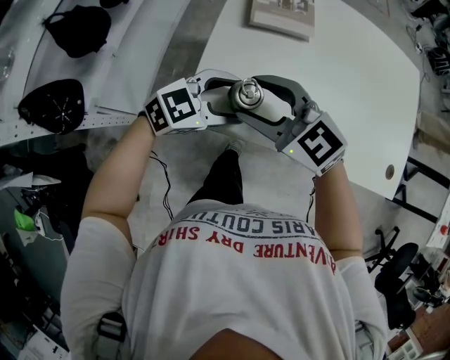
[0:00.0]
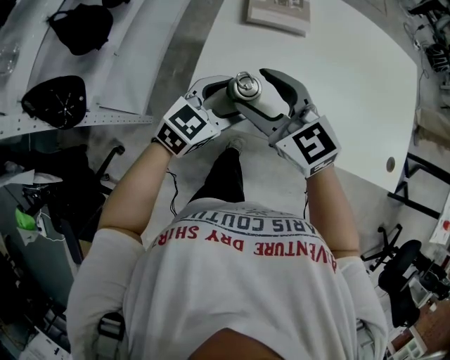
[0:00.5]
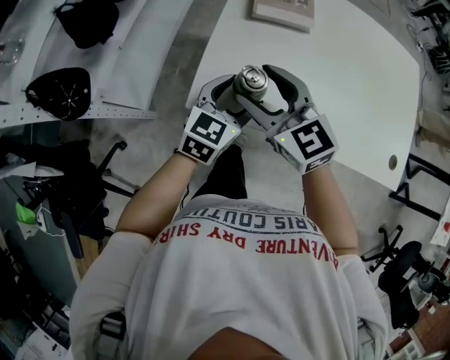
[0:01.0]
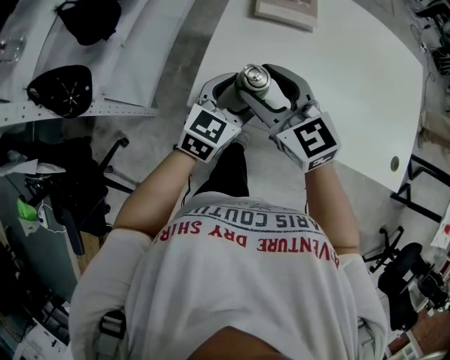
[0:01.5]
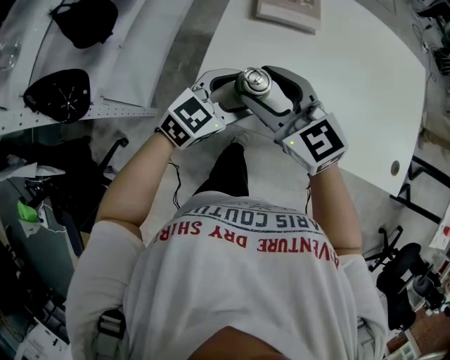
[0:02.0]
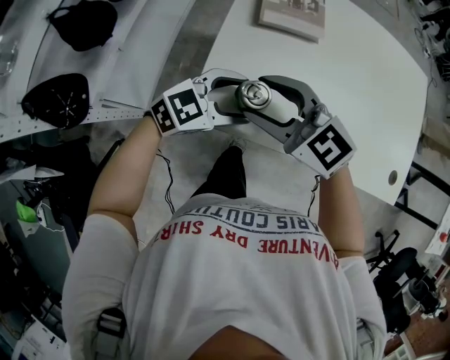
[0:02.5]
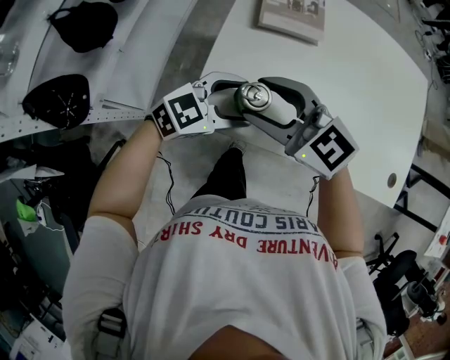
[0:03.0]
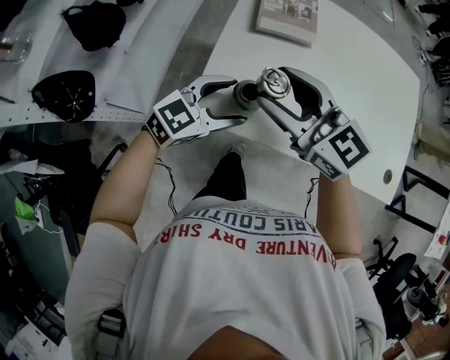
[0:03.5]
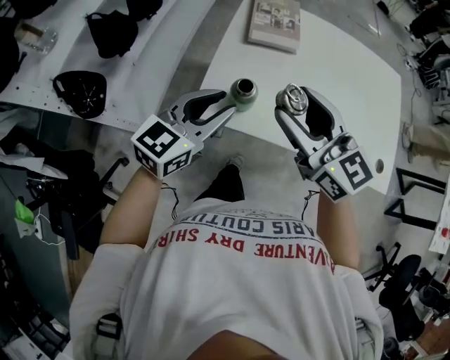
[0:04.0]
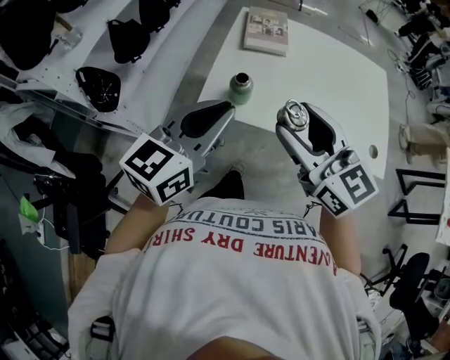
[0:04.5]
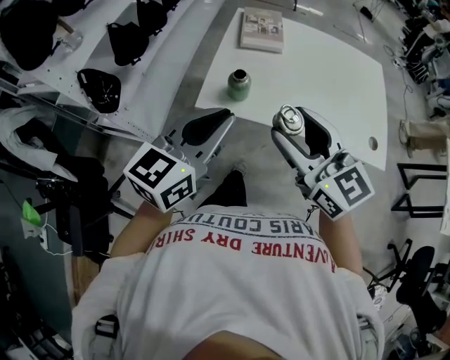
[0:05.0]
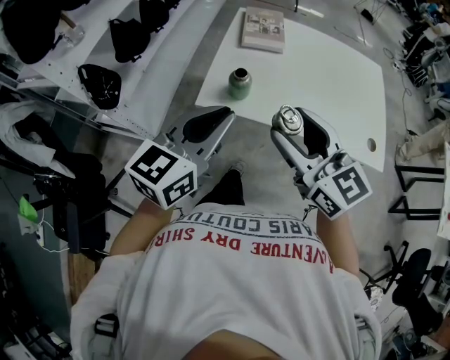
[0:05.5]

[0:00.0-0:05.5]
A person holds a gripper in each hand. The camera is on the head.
0:02.0 to 0:03.5: The right gripper shifts about 5 cm upward.
0:03.5 to 0:05.5: The right gripper shifts about 20 cm backward and upward. Meanwhile the left gripper shifts some 25 cm upward and backward, swivels roughly 30 degrees, and closes.

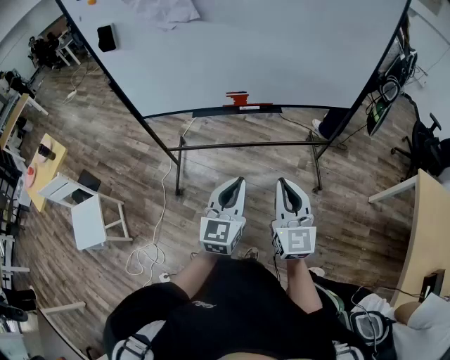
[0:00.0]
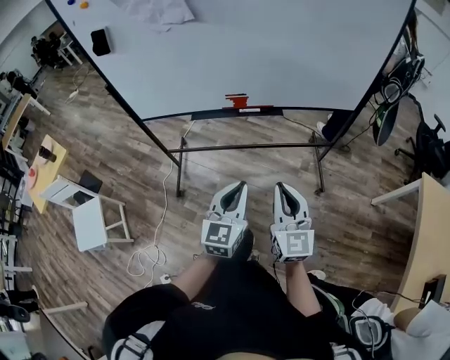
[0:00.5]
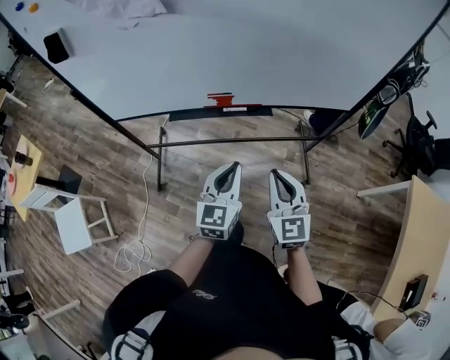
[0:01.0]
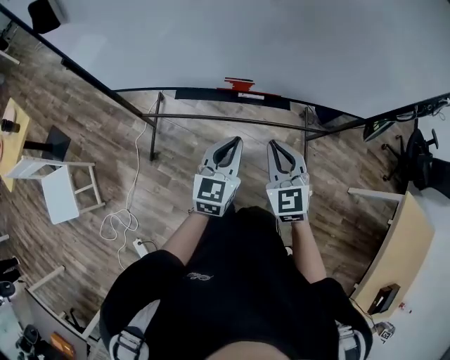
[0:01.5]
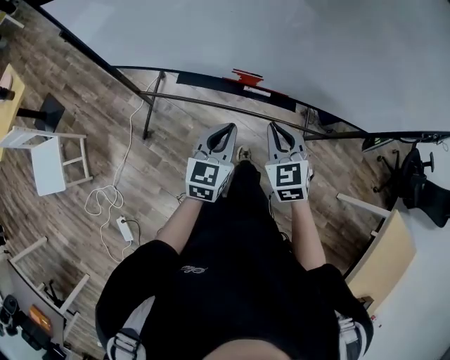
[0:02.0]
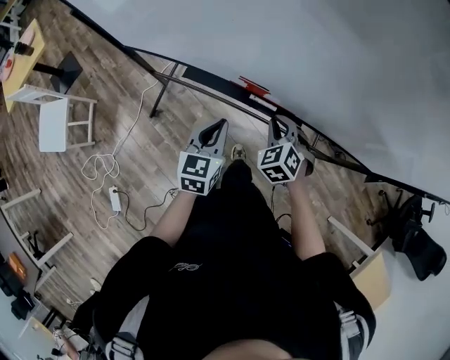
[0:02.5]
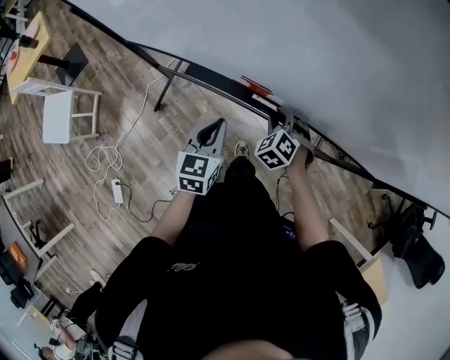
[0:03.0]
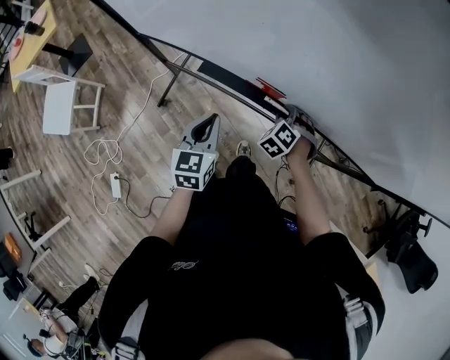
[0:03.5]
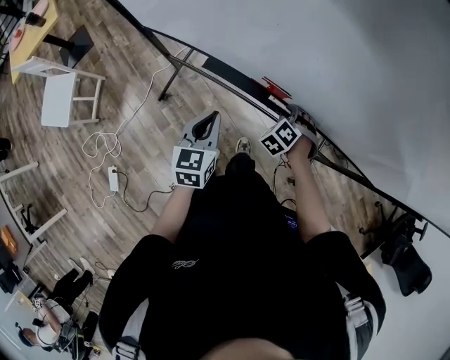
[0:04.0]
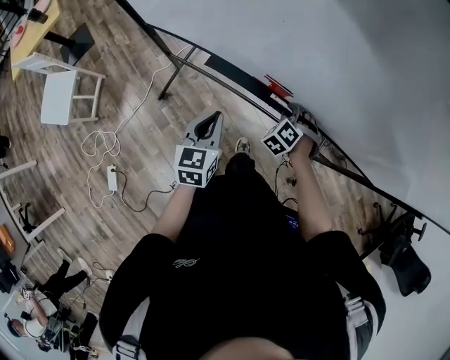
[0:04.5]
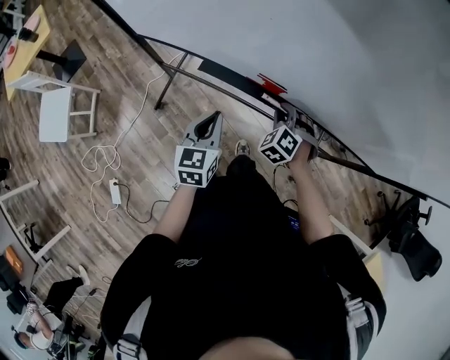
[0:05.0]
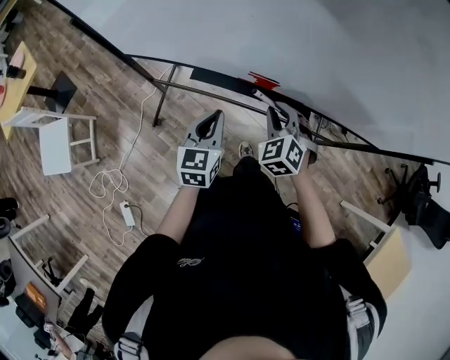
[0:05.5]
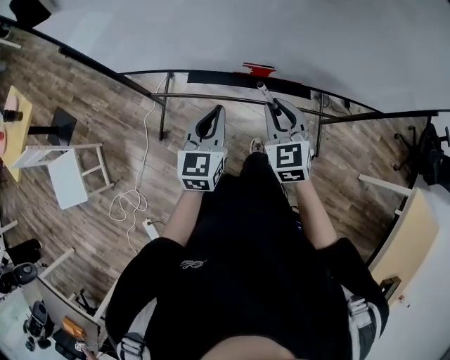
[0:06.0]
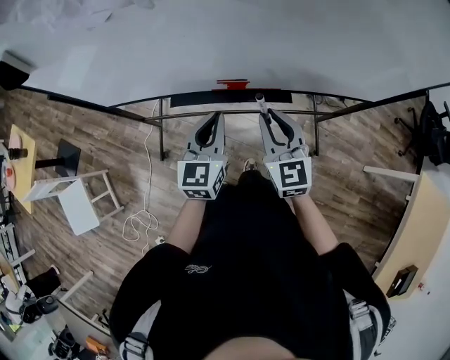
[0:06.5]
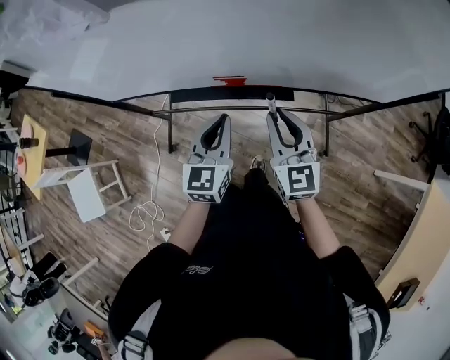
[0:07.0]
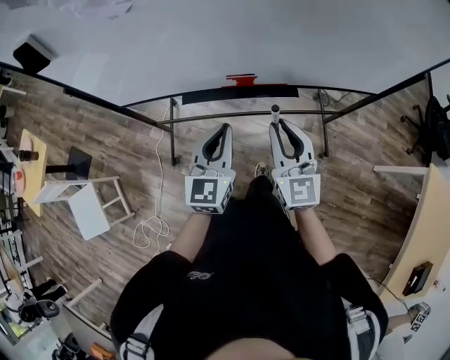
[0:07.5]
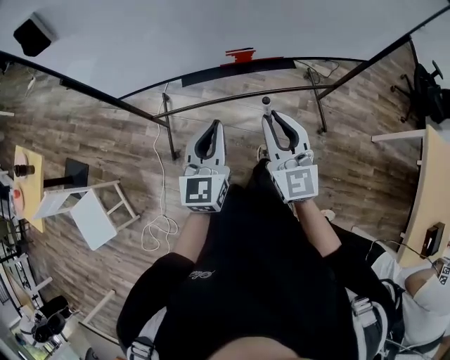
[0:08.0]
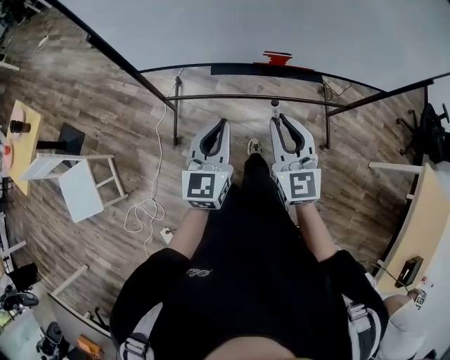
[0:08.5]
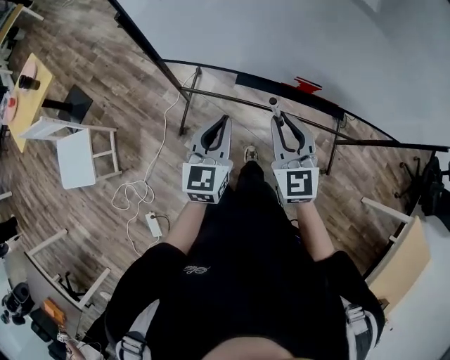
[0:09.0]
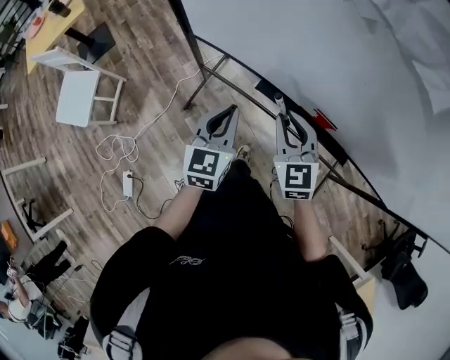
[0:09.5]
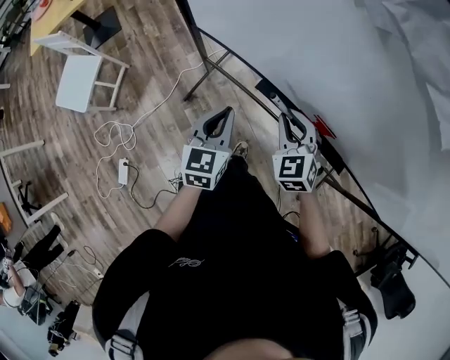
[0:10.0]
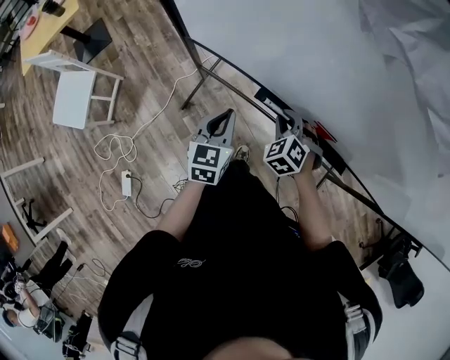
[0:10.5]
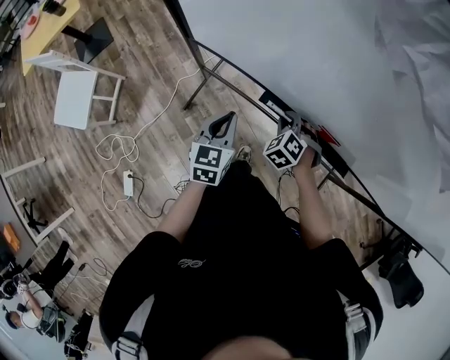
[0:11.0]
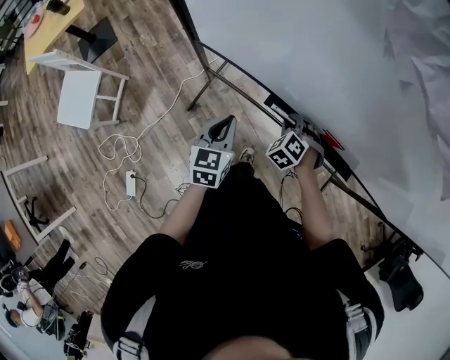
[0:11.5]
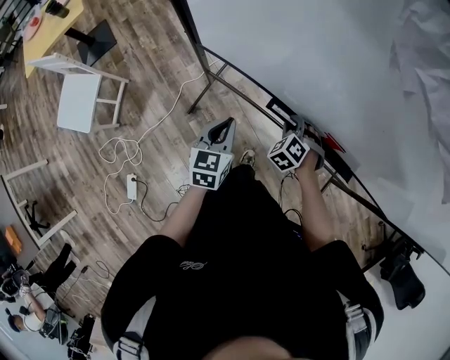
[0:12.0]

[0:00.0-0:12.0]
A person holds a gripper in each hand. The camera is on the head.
0:00.0 to 0:02.0: Both grippers move forward, roughly 30 cm. The right gripper points its fingers about 30 degrees further downward.
0:02.0 to 0:04.0: The left gripper heads to the left and downward, covering approximately 10 cm, and rotates roughly 30 degrees. The right gripper moves downward and forward, approximately 25 cm, and swivels some 50 degrees.
0:04.0 to 0:06.0: The left gripper moves upward, some 10 cm, and swivels some 20 degrees. The right gripper moves upward and backward, some 25 cm, and tilts its fingers approximately 30 degrees upward.
0:06.0 to 0:08.0: The two grippers go approximately 15 cm backward and upward. The right gripper turns by about 30 degrees.
0:08.0 to 0:10.0: The left gripper moves approximately 20 cm, and rotates some 40 degrees. The right gripper moves roughly 30 cm, and tilts its fingers some 30 degrees downward.
0:10.0 to 0:12.0: The left gripper shifts about 10 cm downward and to the left. The right gripper travels downward by roughly 15 cm, and changes its angle by approximately 30 degrees.

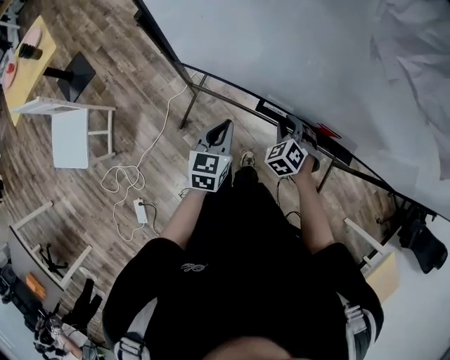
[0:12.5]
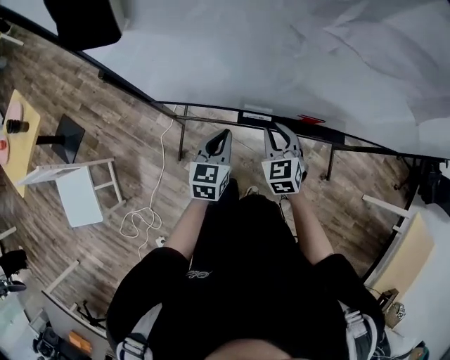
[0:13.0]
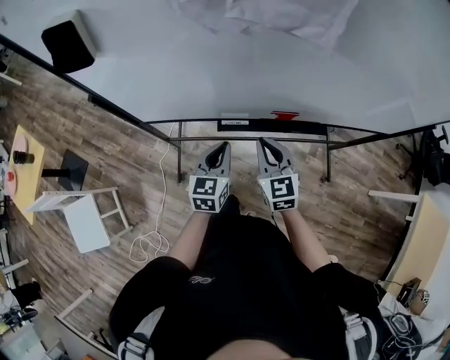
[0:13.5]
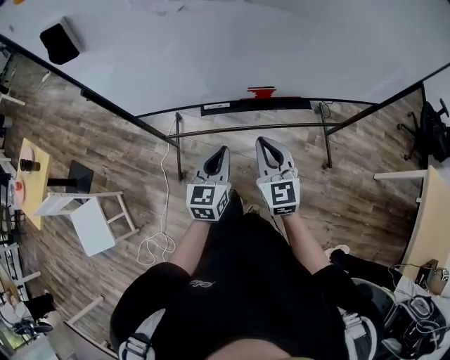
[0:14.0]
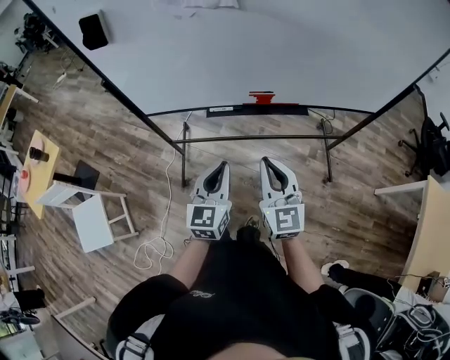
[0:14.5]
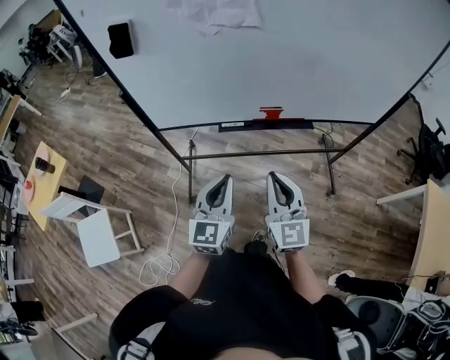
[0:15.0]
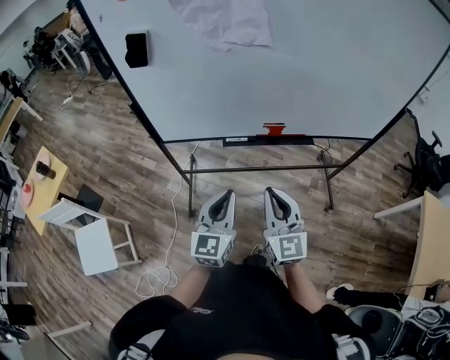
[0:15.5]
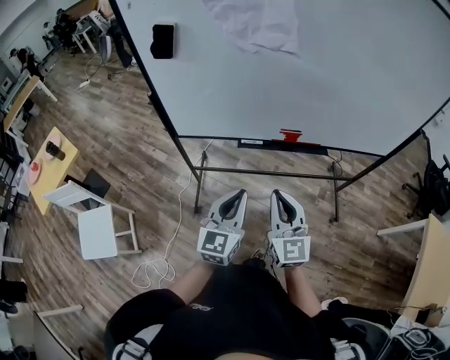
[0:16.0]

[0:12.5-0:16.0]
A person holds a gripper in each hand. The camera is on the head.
0:12.5 to 0:14.5: The right gripper moves backward, upward and to the right, roughly 40 cm, points its fingers about 50 degrees further upward, and closes up. The left gripper travels backward, to the right and upward by about 30 cm, and swivels approximately 30 degrees.
0:14.5 to 0:16.0: The right gripper heads to the left, covering approximately 10 cm. Meanwhile the left gripper moves to the left and upward, roughly 10 cm.

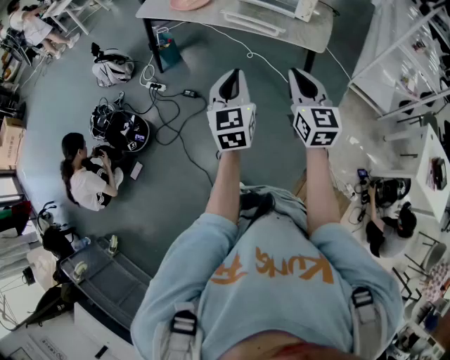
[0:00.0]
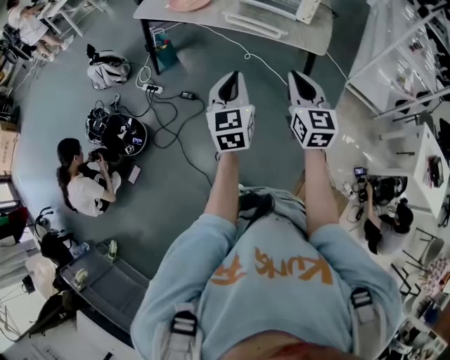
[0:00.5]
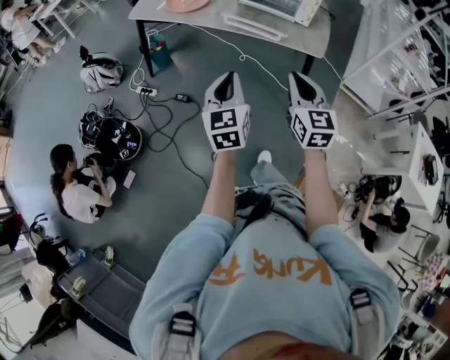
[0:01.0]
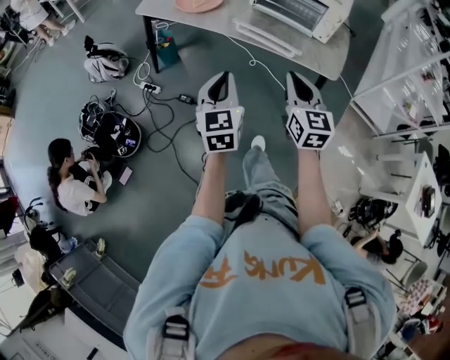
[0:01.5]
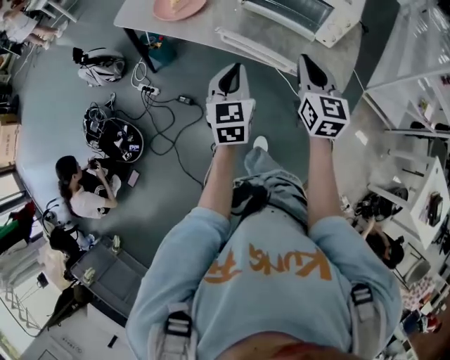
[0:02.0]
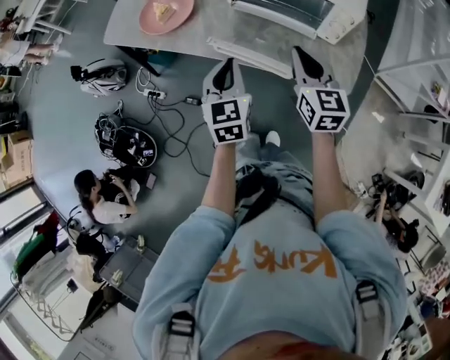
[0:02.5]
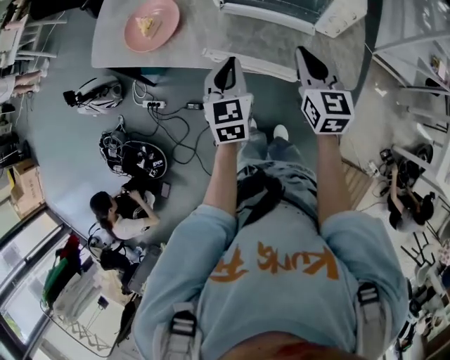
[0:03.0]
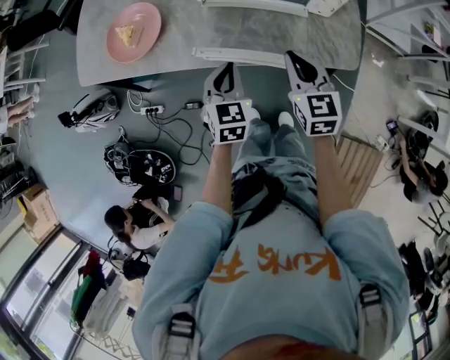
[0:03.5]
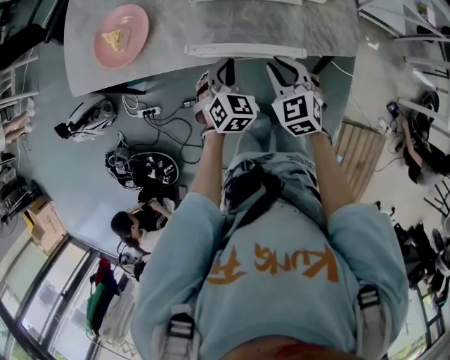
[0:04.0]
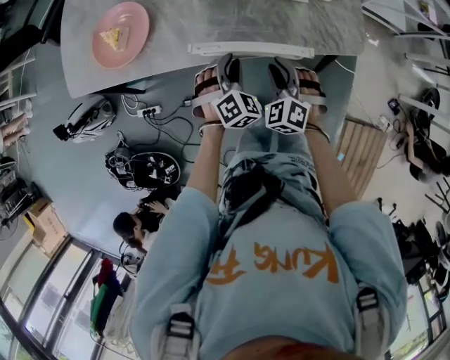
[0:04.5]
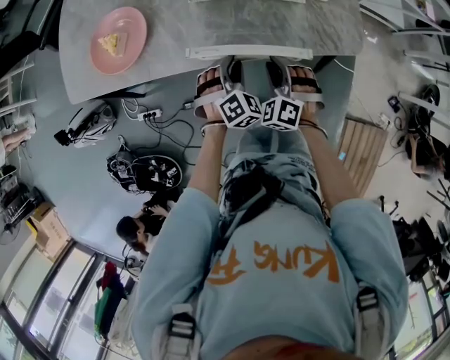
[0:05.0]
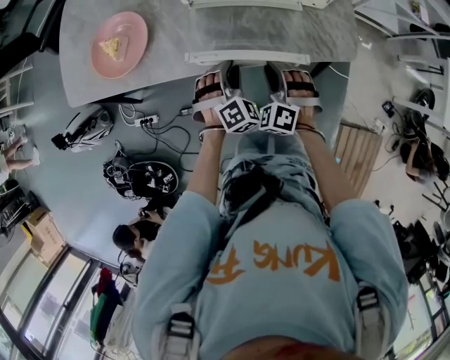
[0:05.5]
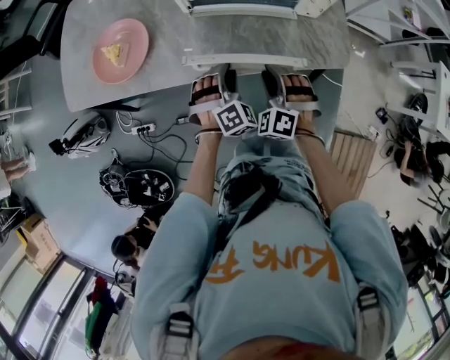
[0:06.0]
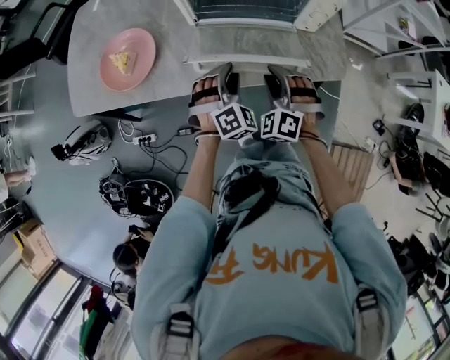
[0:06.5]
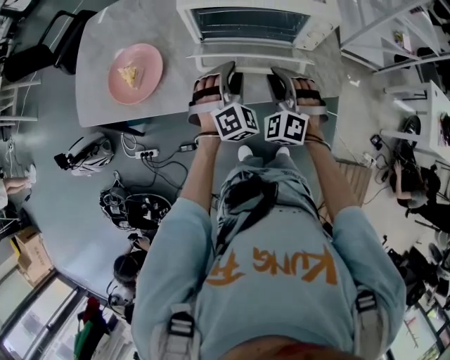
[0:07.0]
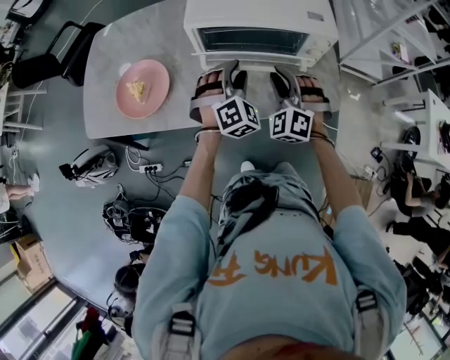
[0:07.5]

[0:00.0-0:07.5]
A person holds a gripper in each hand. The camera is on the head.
0:00.0 to 0:02.0: The grippers both shift forward by some 30 cm.
0:02.0 to 0:04.0: The left gripper heads downward and forward, covering about 20 cm, and turns by about 50 degrees; the right gripper heads downward, covering approximately 15 cm, and changes its angle by approximately 30 degrees.
0:04.0 to 0:05.5: The left gripper swivels roughly 30 degrees, and opens up, while the right gripper shifts roughly 5 cm downward, and turns by about 40 degrees.
0:05.5 to 0:07.5: Both grippers travel together upward and forward, approximately 20 cm.
